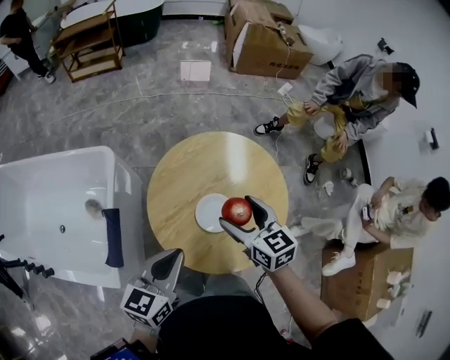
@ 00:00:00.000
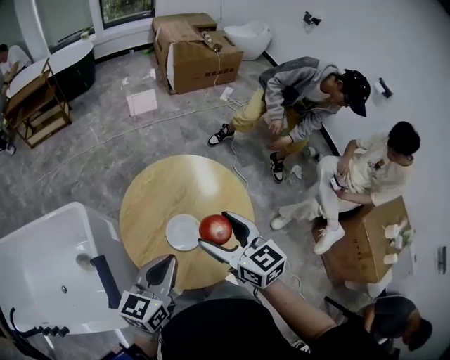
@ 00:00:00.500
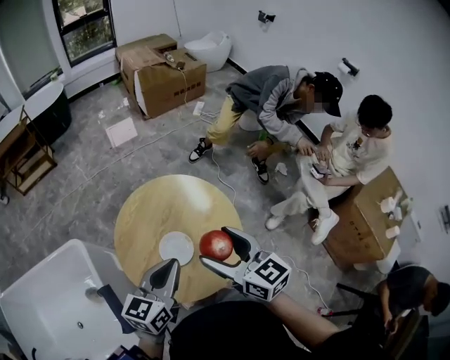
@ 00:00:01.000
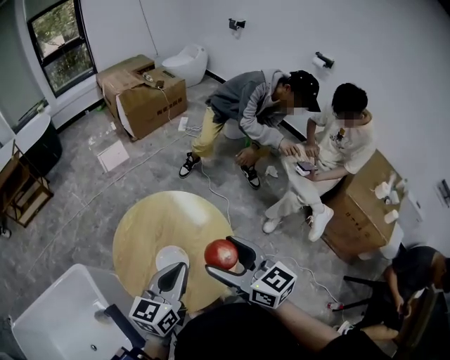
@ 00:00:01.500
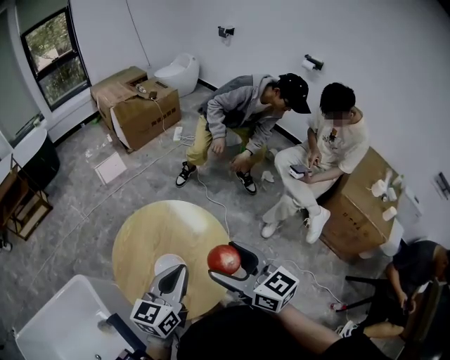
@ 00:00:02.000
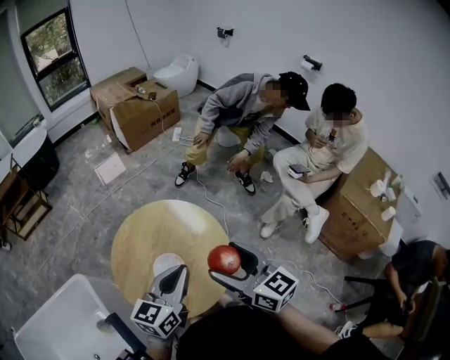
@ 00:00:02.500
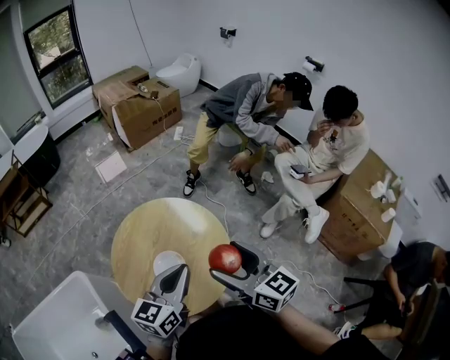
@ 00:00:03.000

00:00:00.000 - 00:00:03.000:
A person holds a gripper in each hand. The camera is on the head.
00:00:00.000 - 00:00:01.500: The left gripper moves some 20 cm, and rotates some 30 degrees. The right gripper changes place by roughly 25 cm, and rotates approximately 30 degrees.
00:00:01.500 - 00:00:03.000: There are only small adjustments of the grippers.

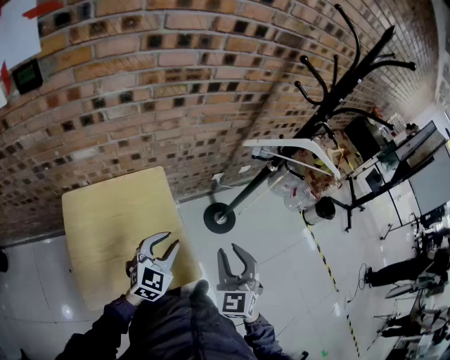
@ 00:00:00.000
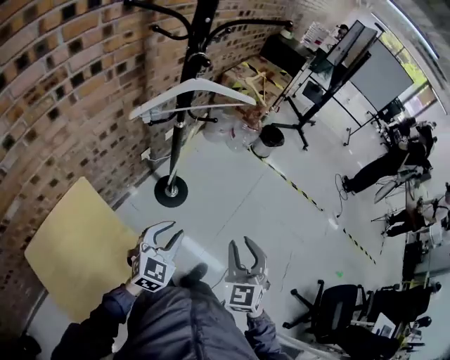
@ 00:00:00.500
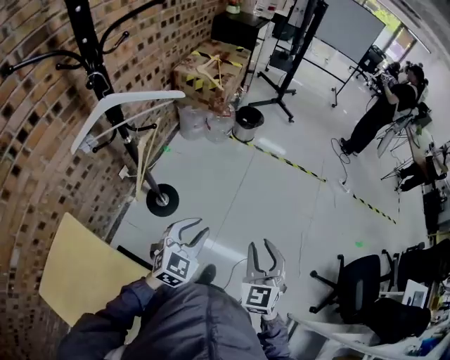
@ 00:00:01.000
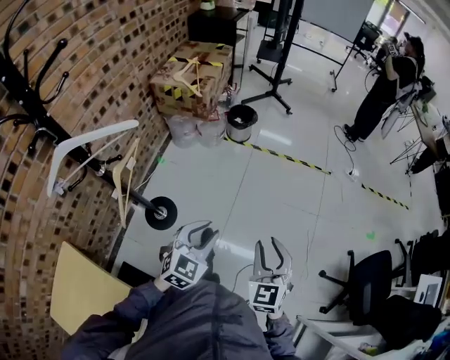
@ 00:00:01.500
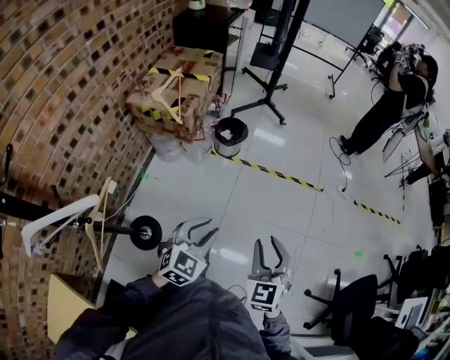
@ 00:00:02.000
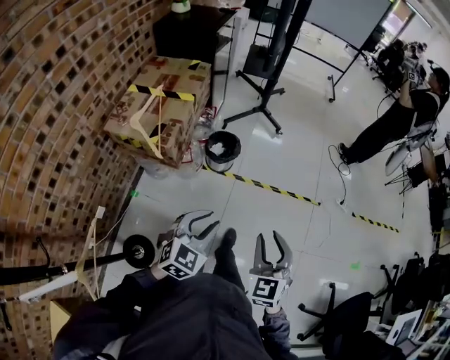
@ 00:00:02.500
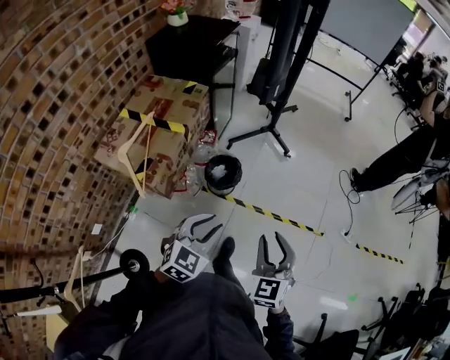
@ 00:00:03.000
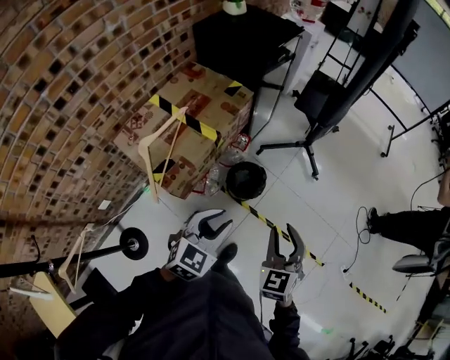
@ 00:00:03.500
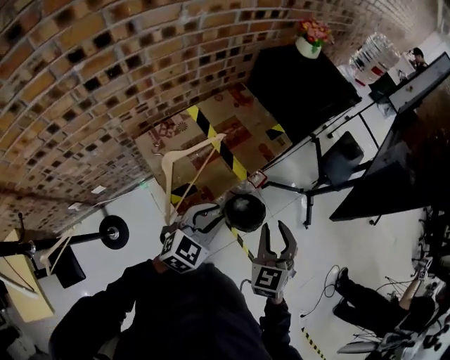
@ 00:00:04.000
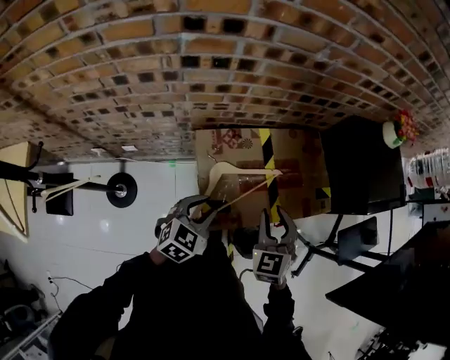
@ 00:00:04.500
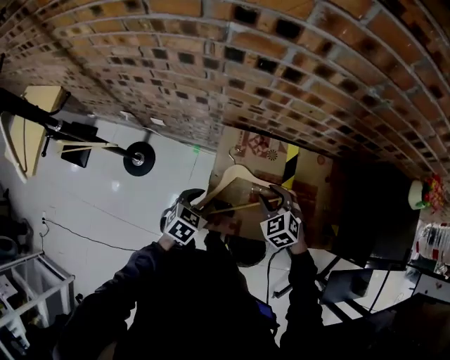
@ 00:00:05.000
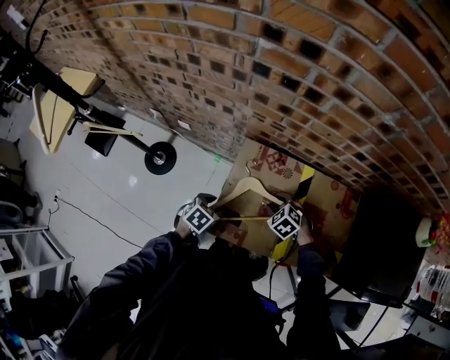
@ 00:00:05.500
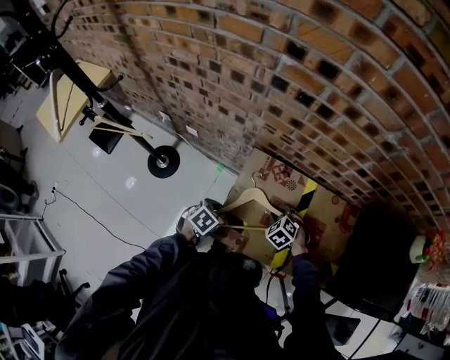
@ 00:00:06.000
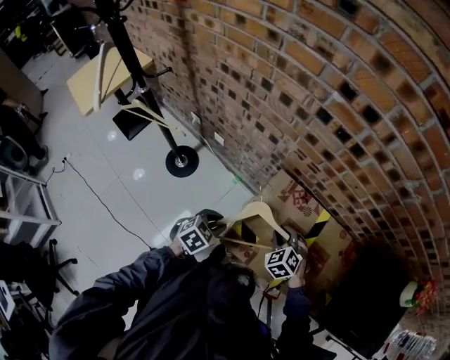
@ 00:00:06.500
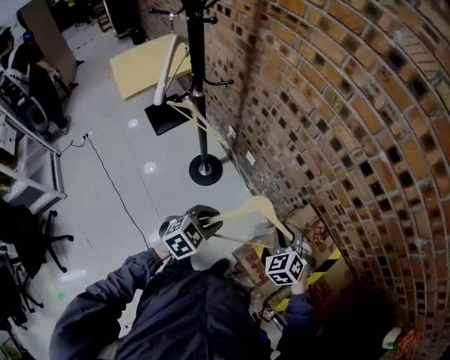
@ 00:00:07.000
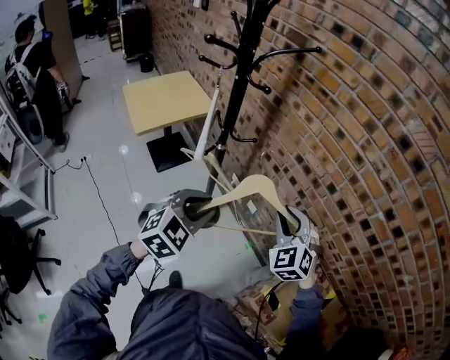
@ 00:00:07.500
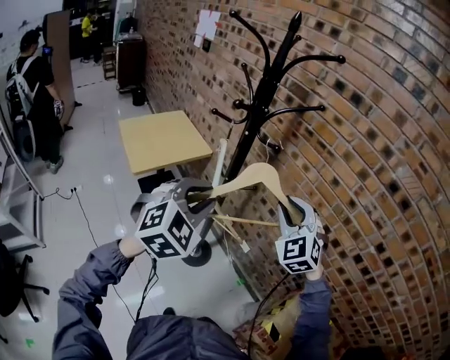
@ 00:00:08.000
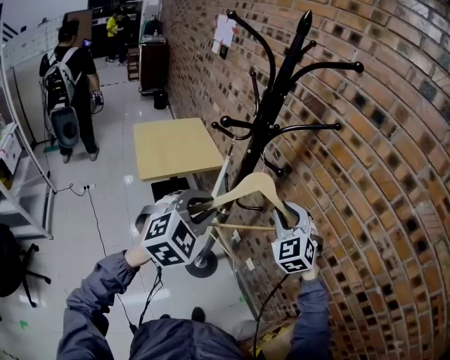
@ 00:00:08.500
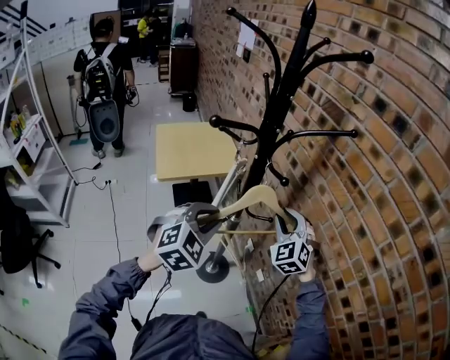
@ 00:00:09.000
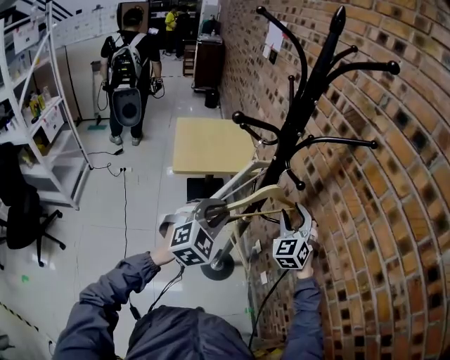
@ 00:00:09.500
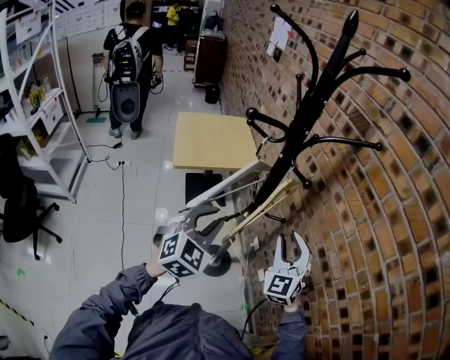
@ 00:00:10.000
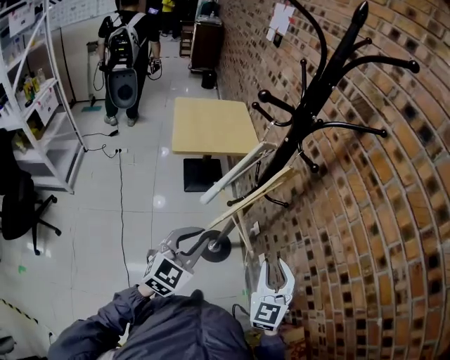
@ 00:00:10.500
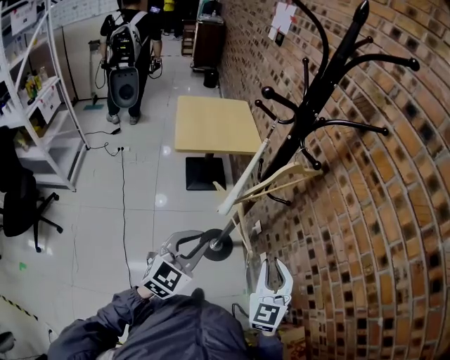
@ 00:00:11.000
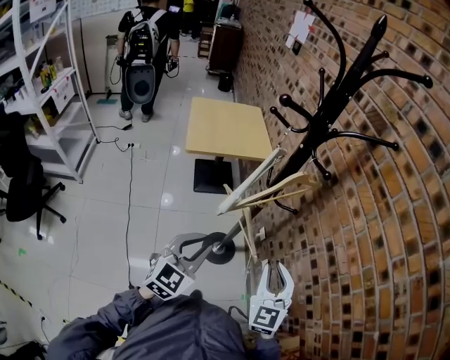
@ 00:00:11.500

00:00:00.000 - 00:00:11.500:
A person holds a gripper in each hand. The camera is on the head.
00:00:00.000 - 00:00:02.000: The two grippers travel together, about 70 cm. The right gripper rotates about 50 degrees. The left gripper changes its angle by roughly 50 degrees.
00:00:02.000 - 00:00:04.000: Both grippers are carried about 60 cm. The left gripper turns by some 30 degrees, while the right gripper turns by about 40 degrees.
00:00:04.000 - 00:00:06.000: The right gripper moves some 40 cm, and points its fingers about 40 degrees further downward. Meanwhile the left gripper travels downward by roughly 20 cm, and rotates around the line of its fingers by roughly 60 degrees, counterclockwise from behind.
00:00:06.000 - 00:00:07.500: The left gripper shifts by some 50 cm, and rotates some 50 degrees. The right gripper ends up approximately 60 cm from where it was, and angles its fingers upward, by roughly 40 degrees.
00:00:07.500 - 00:00:09.500: The left gripper goes upward and returns, some 15 cm each way, and changes its angle by some 30 degrees, while the right gripper goes upward and returns, roughly 15 cm each way, rotates approximately 20 degrees, and opens.
00:00:09.500 - 00:00:11.500: The left gripper moves backward and downward, some 15 cm, and rotates roughly 30 degrees; the right gripper moves backward, some 25 cm, swivels about 20 degrees, and closes up.

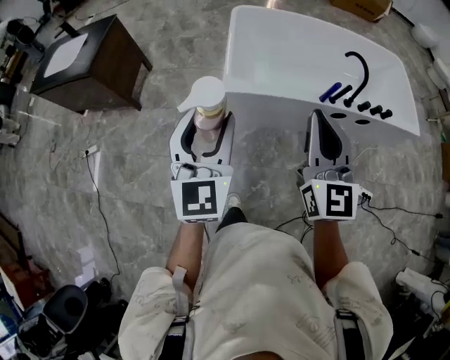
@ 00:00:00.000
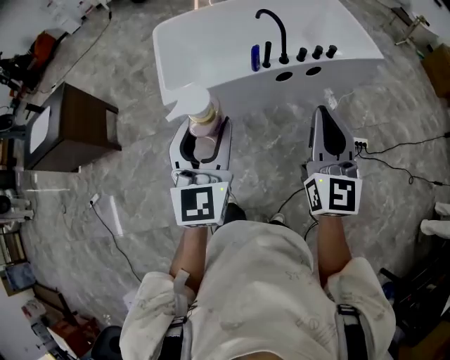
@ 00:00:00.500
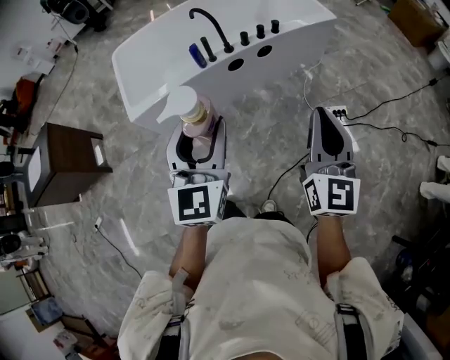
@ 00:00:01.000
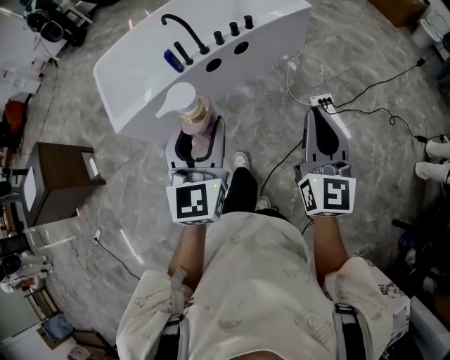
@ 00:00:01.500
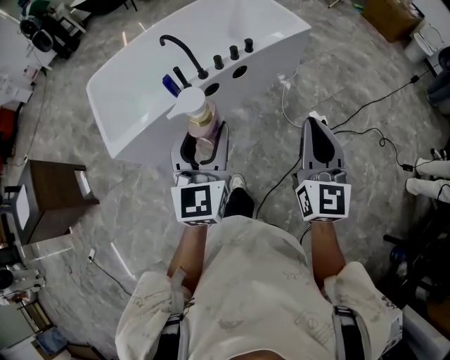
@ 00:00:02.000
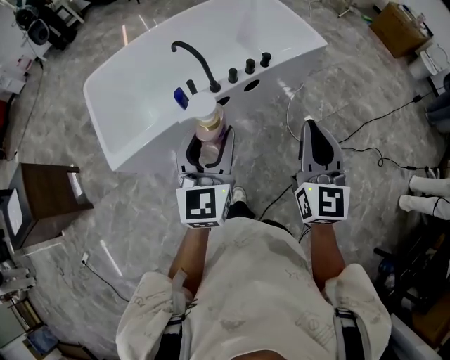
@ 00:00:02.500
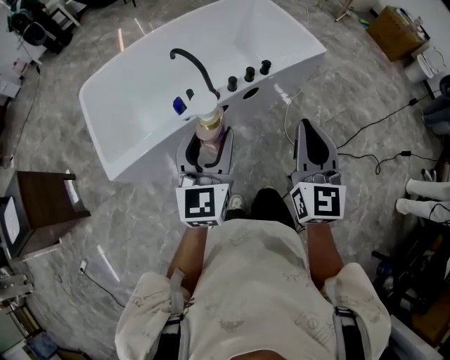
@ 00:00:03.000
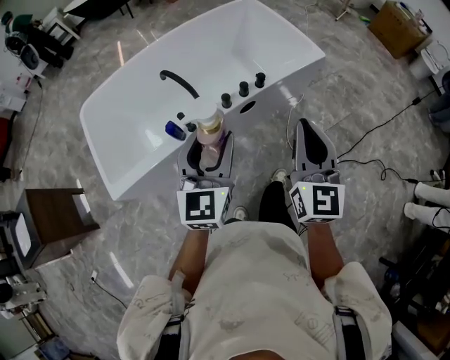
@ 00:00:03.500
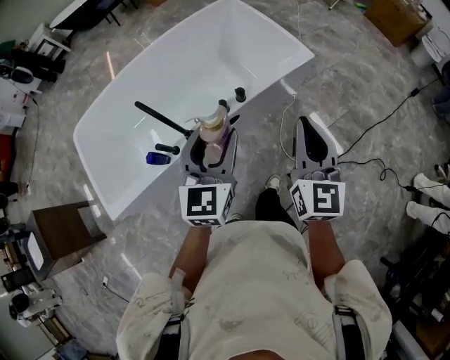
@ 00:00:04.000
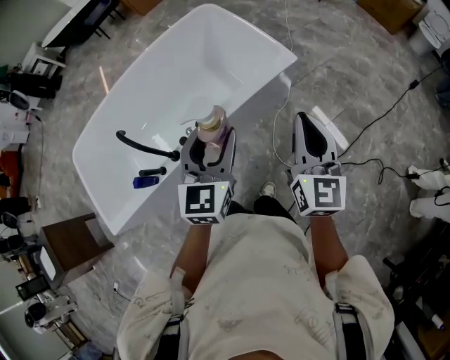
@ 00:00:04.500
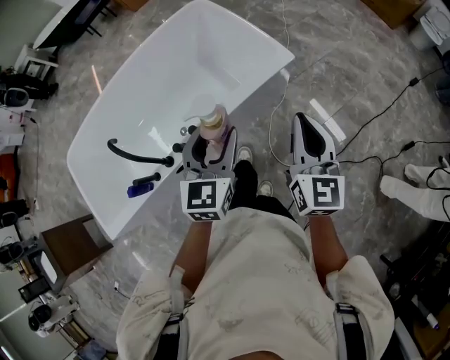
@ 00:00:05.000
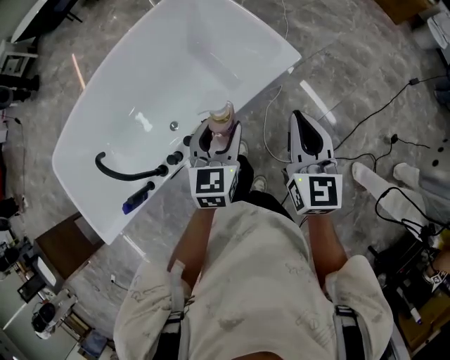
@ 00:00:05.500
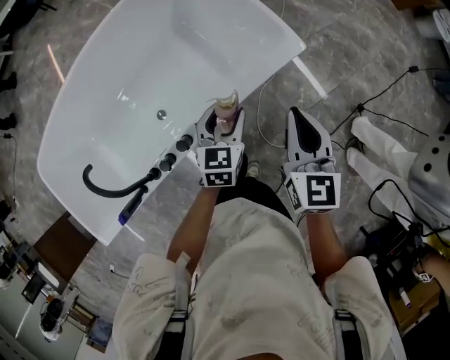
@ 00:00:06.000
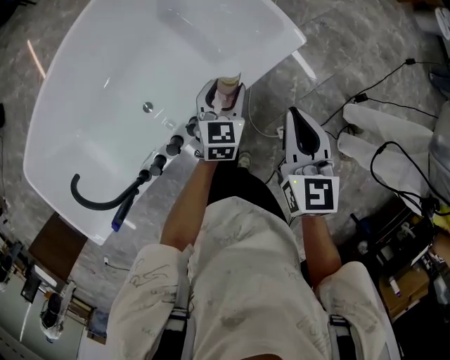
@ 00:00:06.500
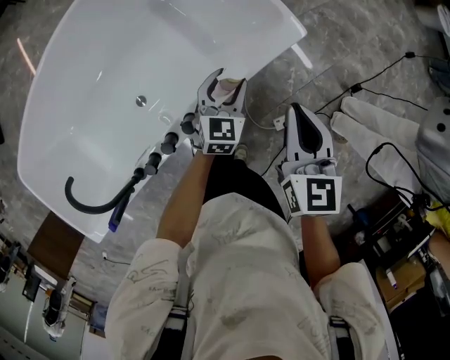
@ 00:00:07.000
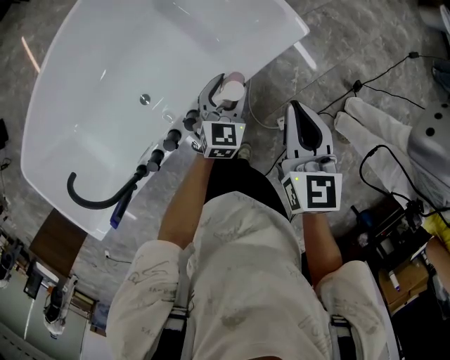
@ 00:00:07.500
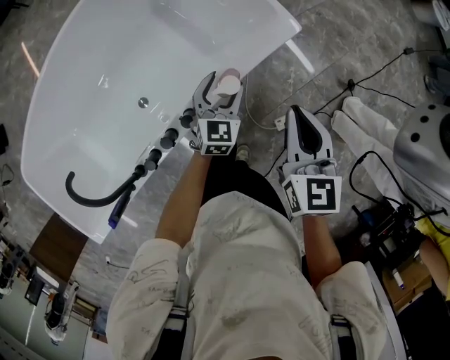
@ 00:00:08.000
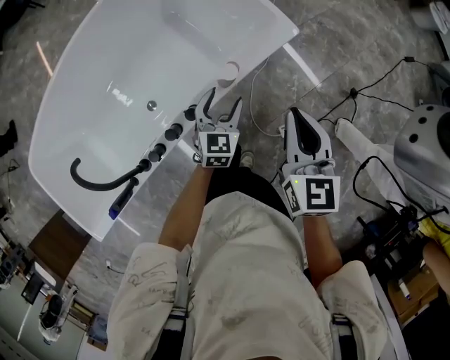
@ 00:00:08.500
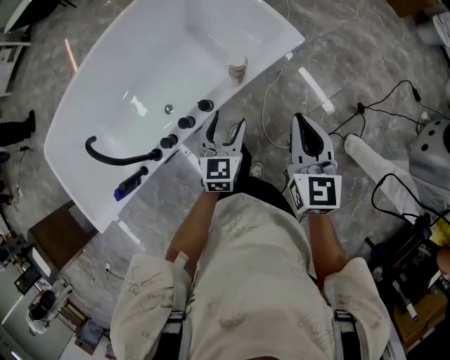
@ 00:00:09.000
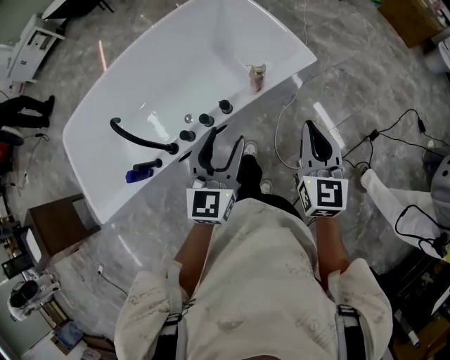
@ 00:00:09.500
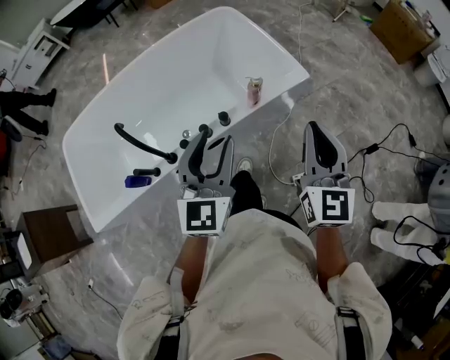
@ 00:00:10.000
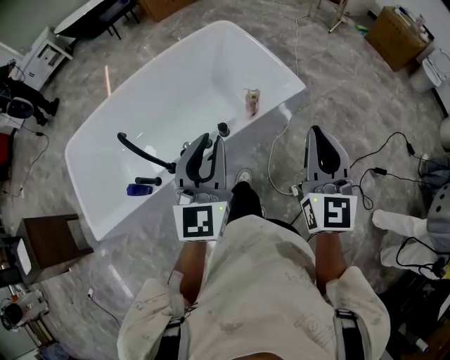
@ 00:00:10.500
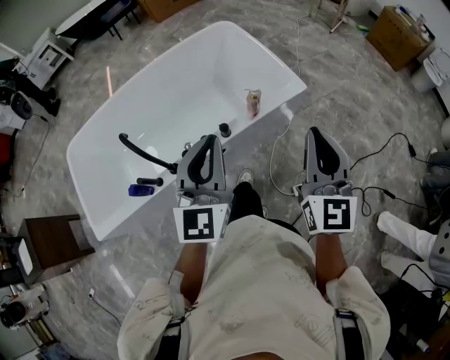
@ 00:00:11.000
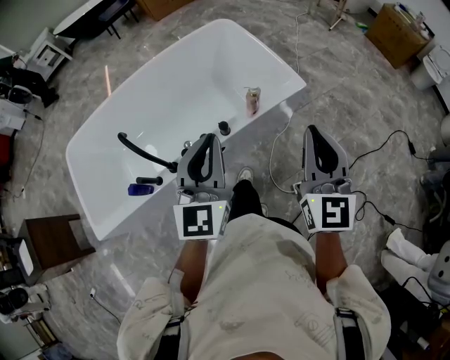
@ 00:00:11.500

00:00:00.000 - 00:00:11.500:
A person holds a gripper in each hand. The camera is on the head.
00:00:00.000 - 00:00:02.000: Both grippers are carried some 60 cm. The right gripper rotates approximately 40 degrees. The left gripper changes its angle by about 30 degrees.
00:00:02.000 - 00:00:04.000: Both grippers move forward, roughly 35 cm.
00:00:04.000 - 00:00:06.000: The two grippers go roughly 40 cm forward and downward. The left gripper rotates roughly 30 degrees. The right gripper changes its angle by roughly 20 degrees.
00:00:06.000 - 00:00:07.500: The left gripper shifts approximately 10 cm downward and forward, while the right gripper shifts approximately 5 cm downward.
00:00:07.500 - 00:00:09.500: The left gripper is displaced backward and upward by some 40 cm, and swivels some 30 degrees. Meanwhile the right gripper heads backward and upward, covering some 20 cm.
00:00:09.500 - 00:00:11.500: Both grippers travel together upward, some 10 cm. The left gripper closes its fingers.
